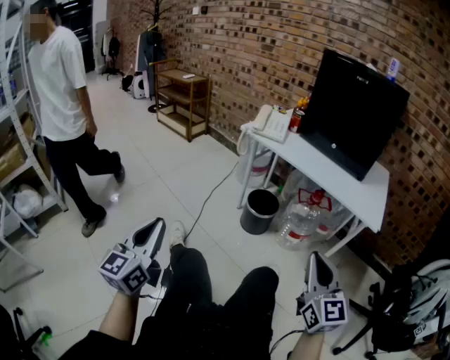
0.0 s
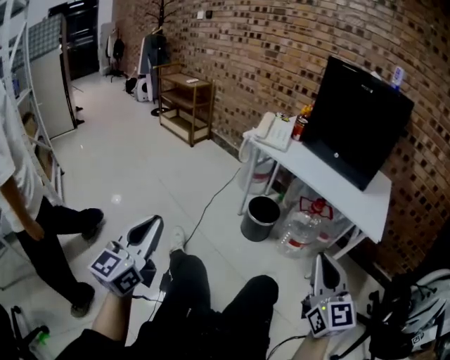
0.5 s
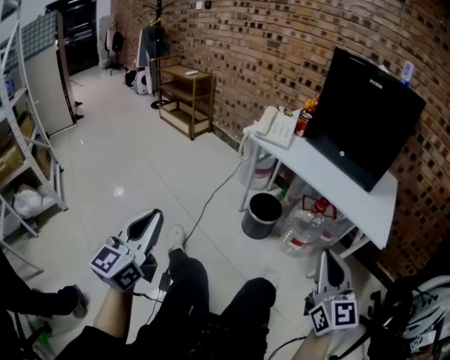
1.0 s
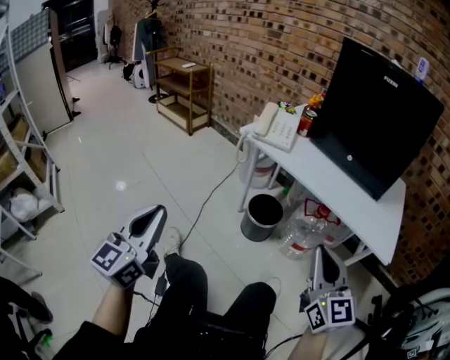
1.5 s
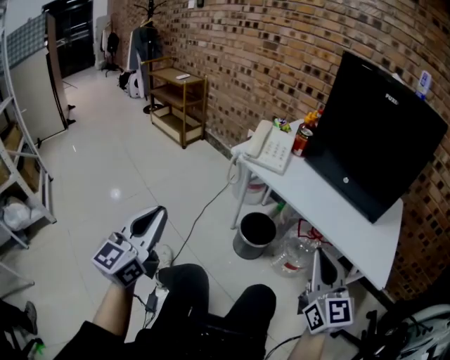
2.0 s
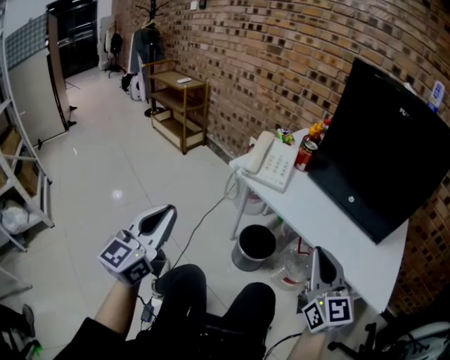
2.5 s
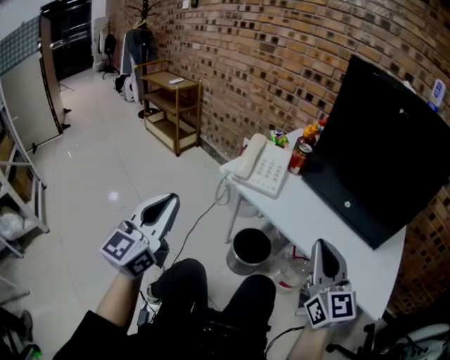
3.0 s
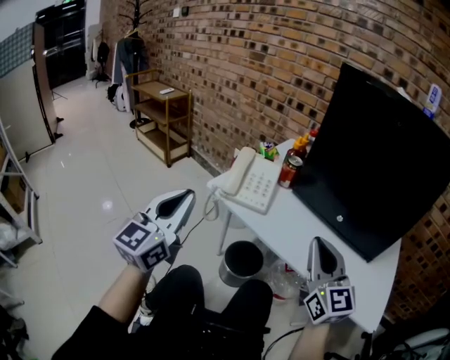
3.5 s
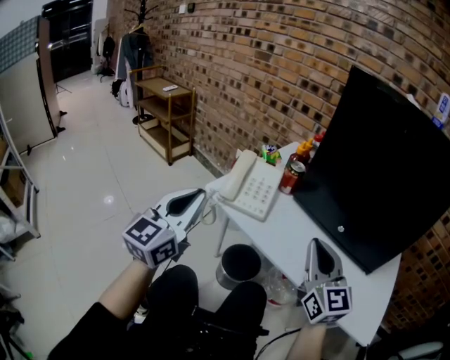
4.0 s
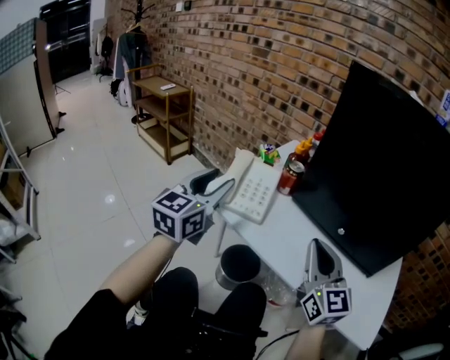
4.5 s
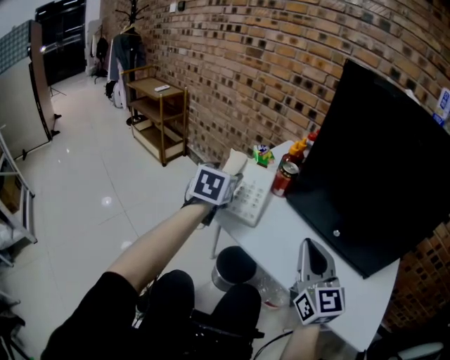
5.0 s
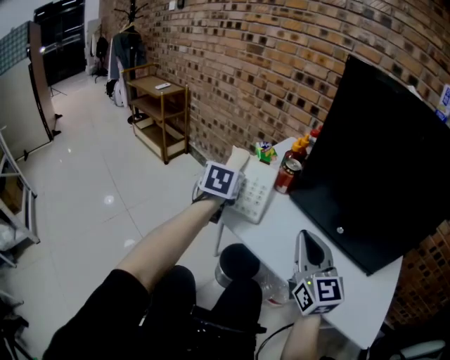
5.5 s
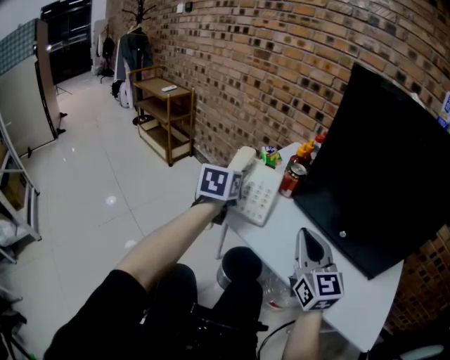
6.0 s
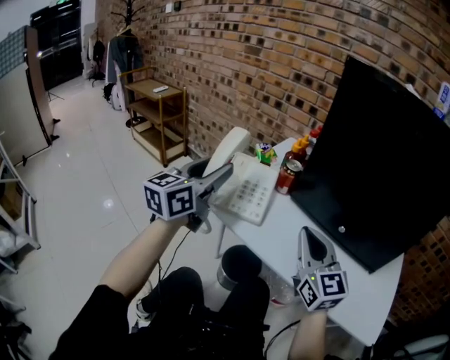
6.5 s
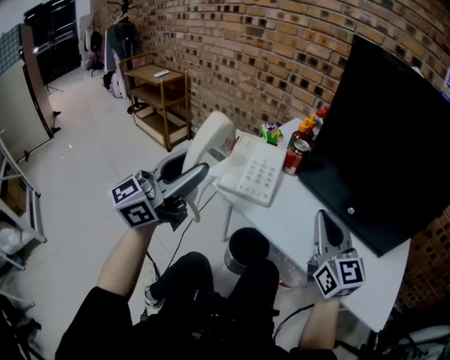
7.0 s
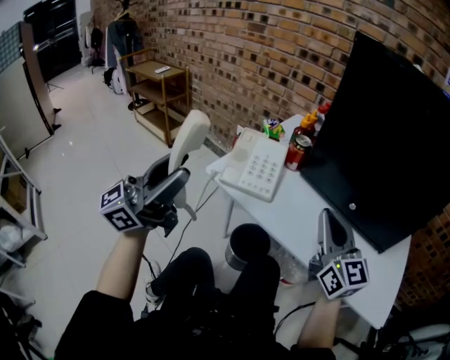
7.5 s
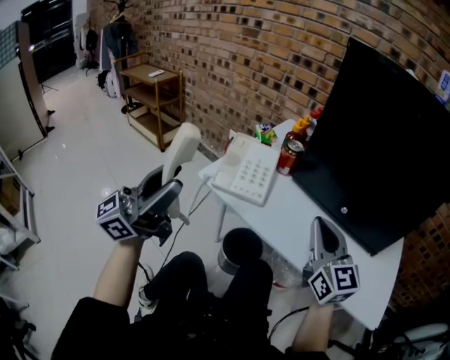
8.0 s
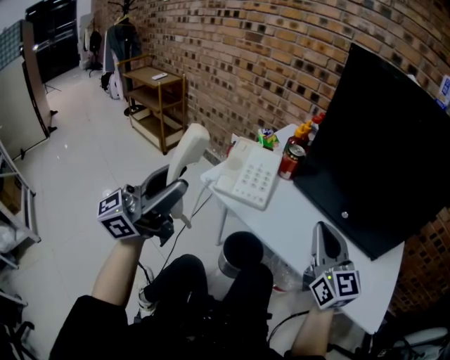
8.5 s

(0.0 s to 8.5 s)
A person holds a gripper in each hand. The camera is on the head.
0.0 s - 2.0 s: Both grippers move forward, roughly 25 cm.
2.0 s - 4.0 s: The left gripper shifts approximately 30 cm forward and to the right. The right gripper goes about 20 cm forward.
4.0 s - 6.5 s: The left gripper goes some 10 cm forward, and opens up, while the right gripper is displaced forward by roughly 5 cm.
6.5 s - 8.5 s: The left gripper travels backward by about 15 cm, and changes its angle by about 30 degrees.

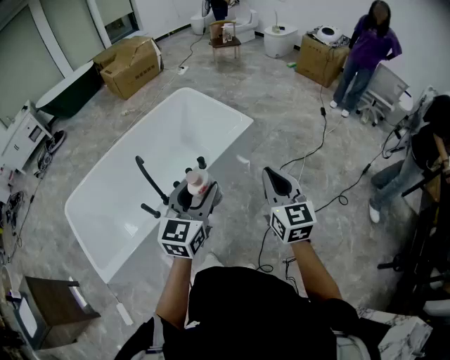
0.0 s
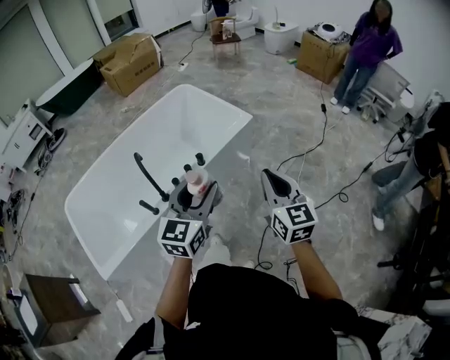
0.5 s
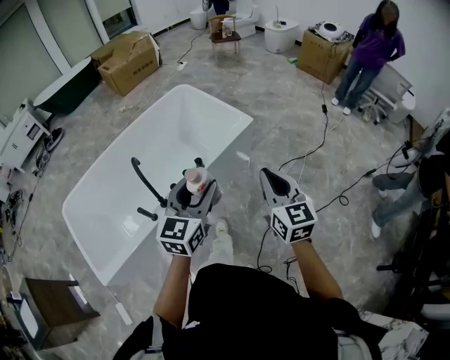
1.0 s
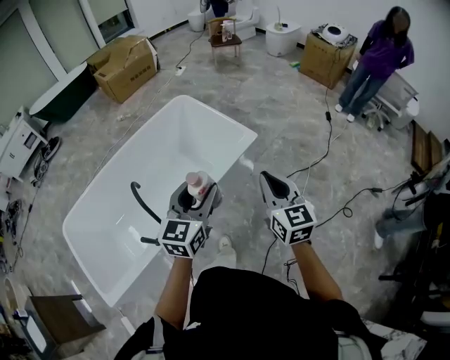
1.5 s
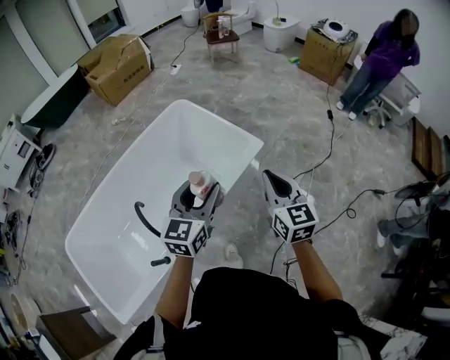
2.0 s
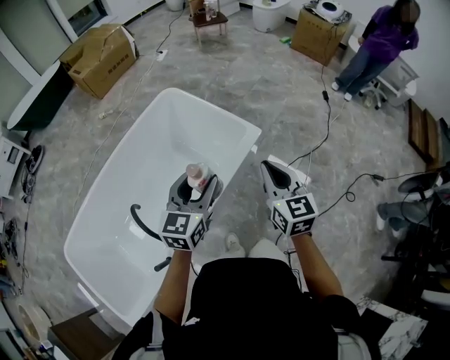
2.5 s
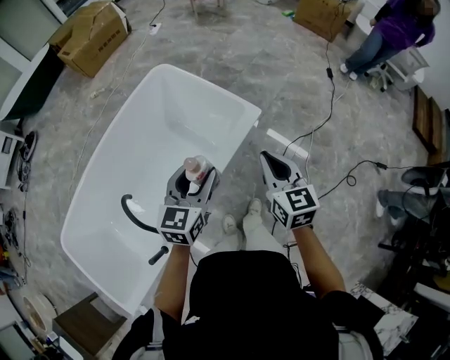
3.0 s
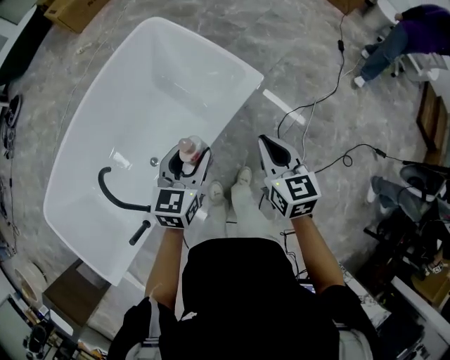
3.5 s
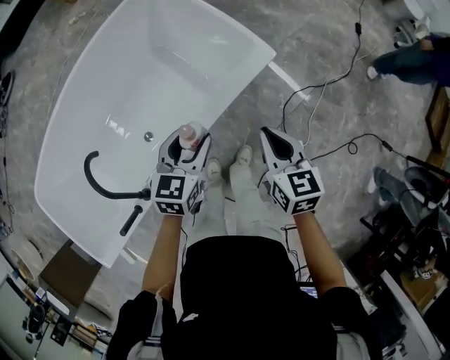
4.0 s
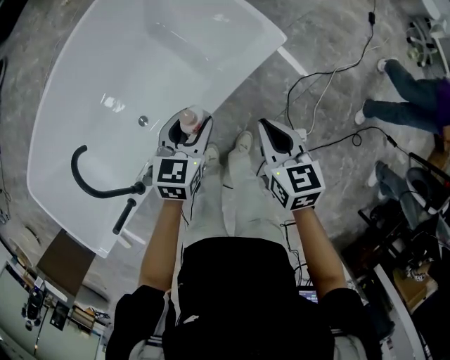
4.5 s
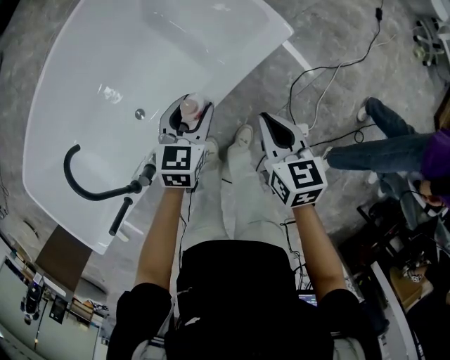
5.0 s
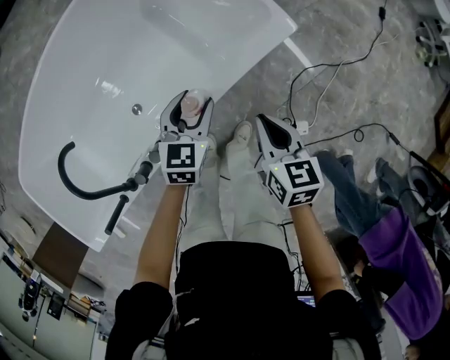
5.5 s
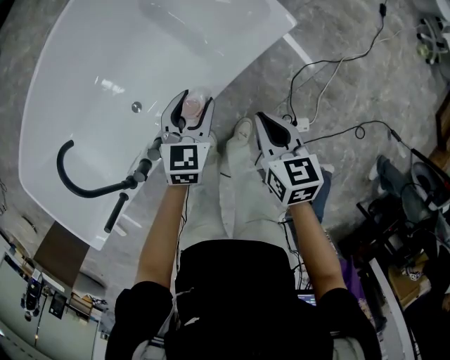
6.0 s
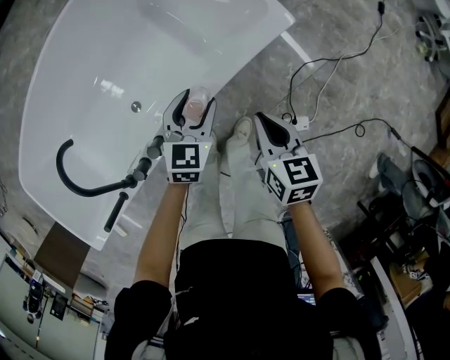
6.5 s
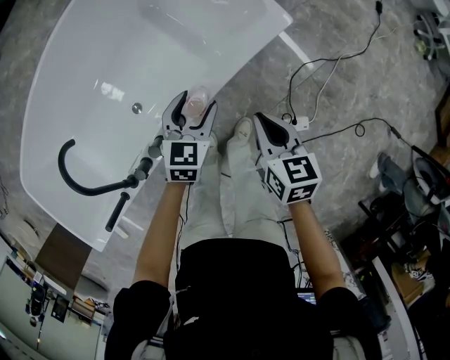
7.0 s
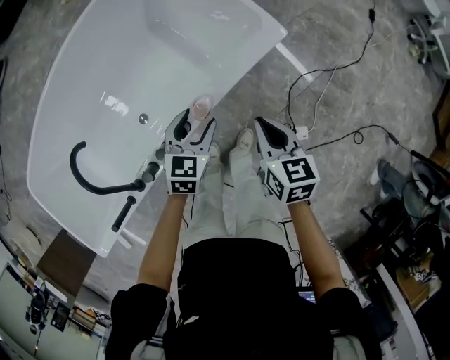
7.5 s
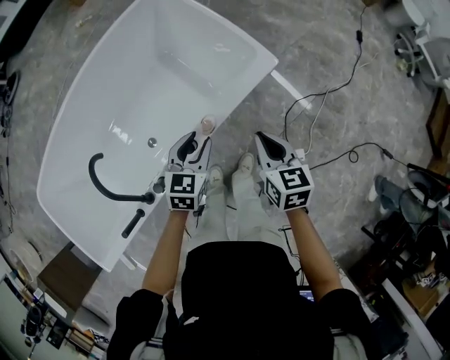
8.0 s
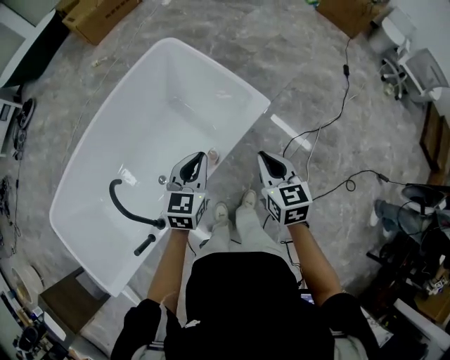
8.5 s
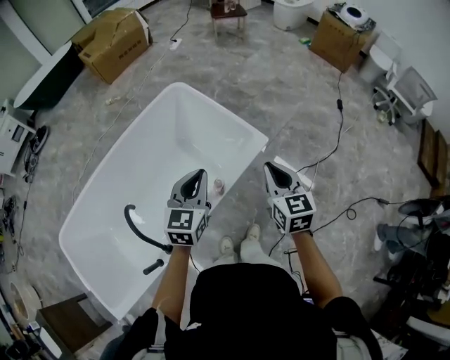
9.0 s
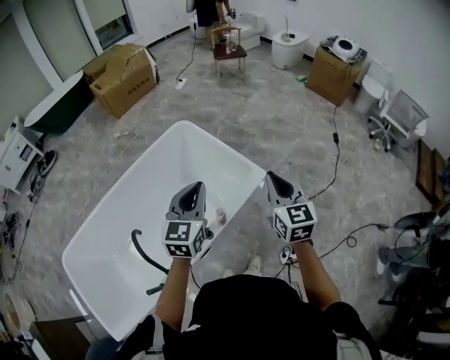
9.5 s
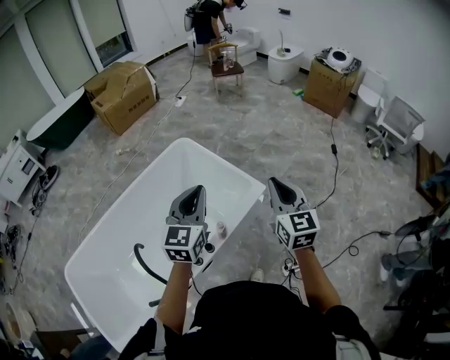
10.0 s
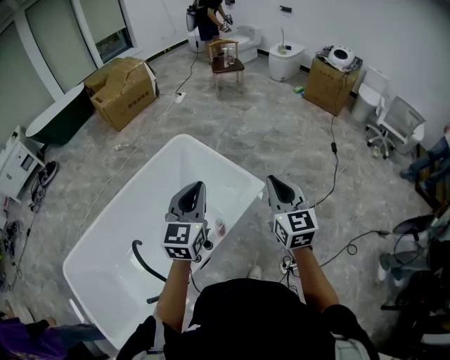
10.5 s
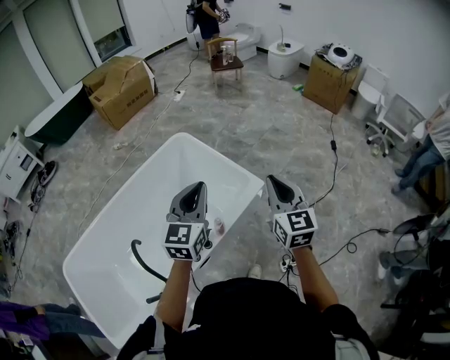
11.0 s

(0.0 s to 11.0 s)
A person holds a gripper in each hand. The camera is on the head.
0.0 s - 2.0 s: The grippers both shift forward by some 30 cm.
2.0 s - 3.5 s: Both grippers travel together downward and forward, approximately 20 cm.
3.5 s - 5.5 s: Both grippers travel together downward, roughly 25 cm.
5.5 s - 7.5 s: The left gripper shifts about 5 cm backward.
7.5 s - 9.0 s: Both grippers travel together upward, some 30 cm. The left gripper rotates some 20 degrees, and closes. Meanwhile the right gripper rotates approximately 20 degrees.
9.0 s - 11.0 s: Both grippers travel together upward, about 15 cm.

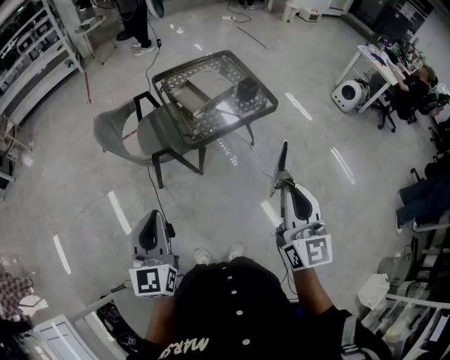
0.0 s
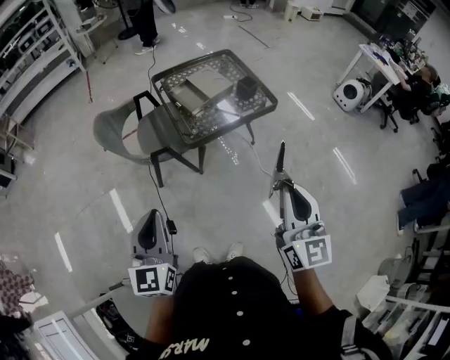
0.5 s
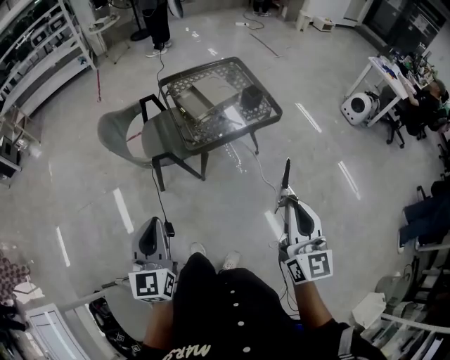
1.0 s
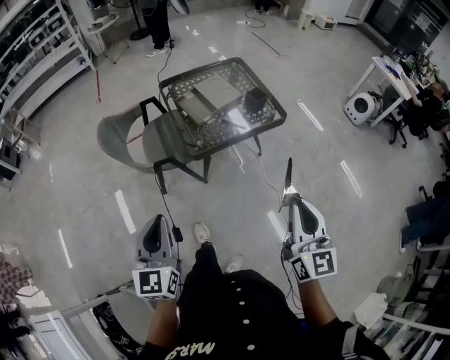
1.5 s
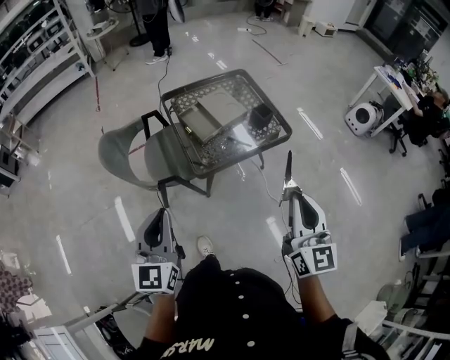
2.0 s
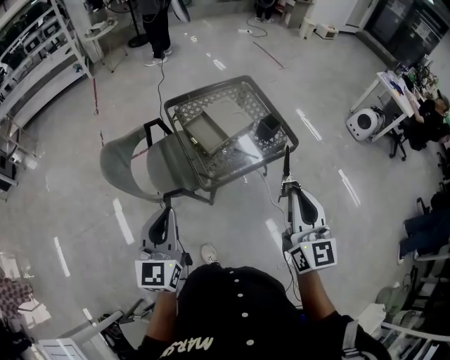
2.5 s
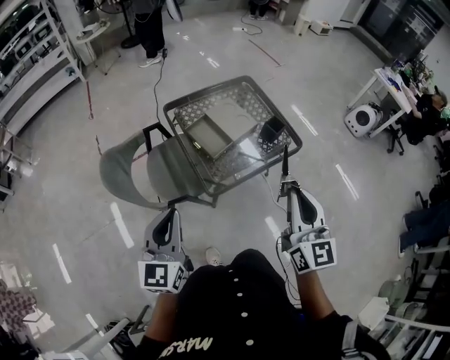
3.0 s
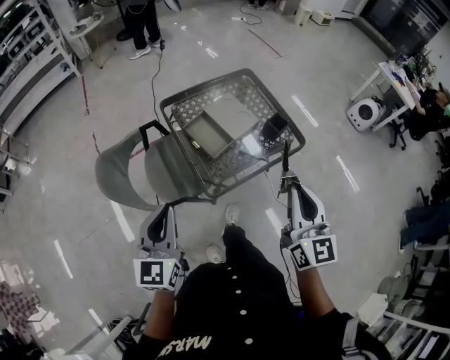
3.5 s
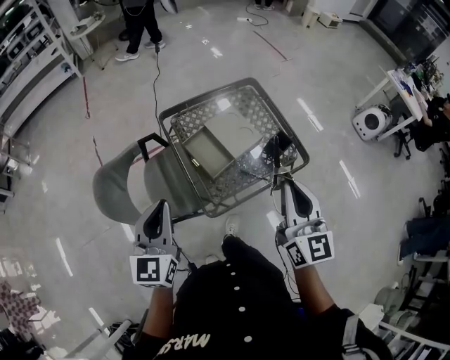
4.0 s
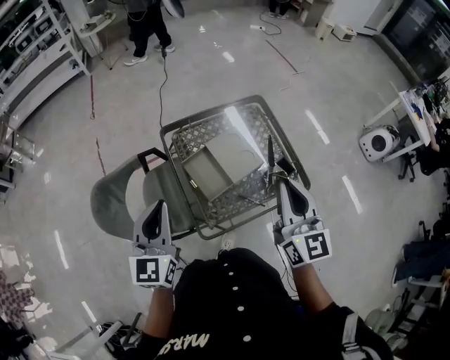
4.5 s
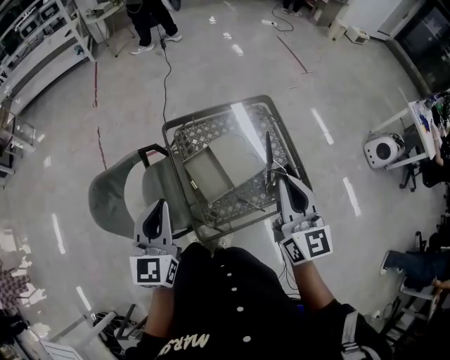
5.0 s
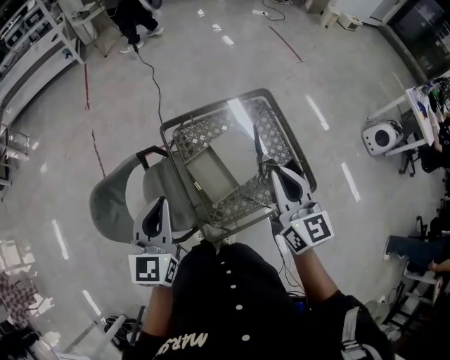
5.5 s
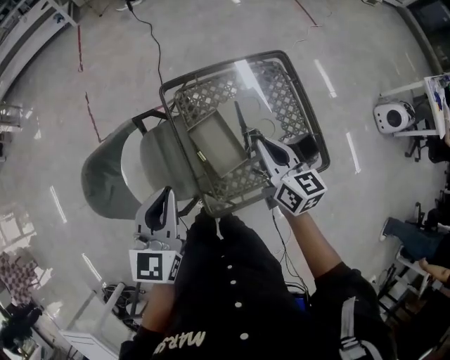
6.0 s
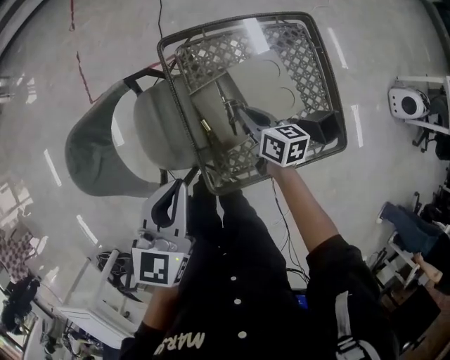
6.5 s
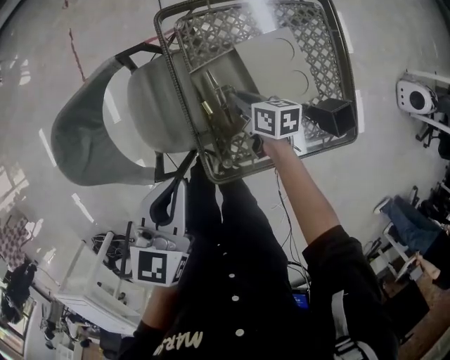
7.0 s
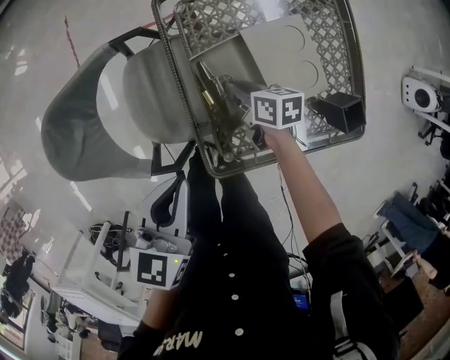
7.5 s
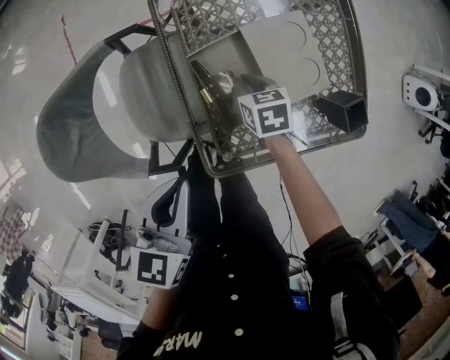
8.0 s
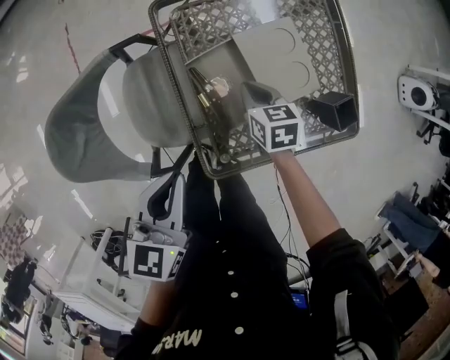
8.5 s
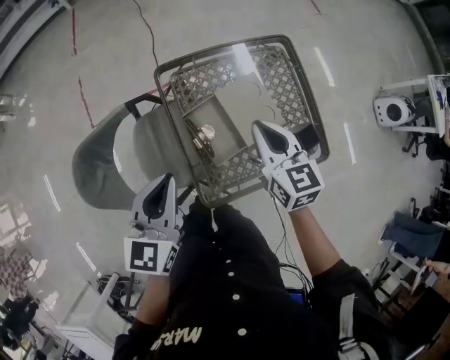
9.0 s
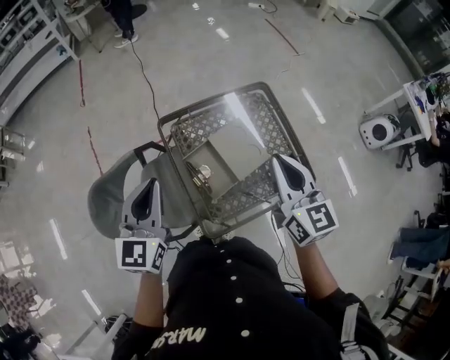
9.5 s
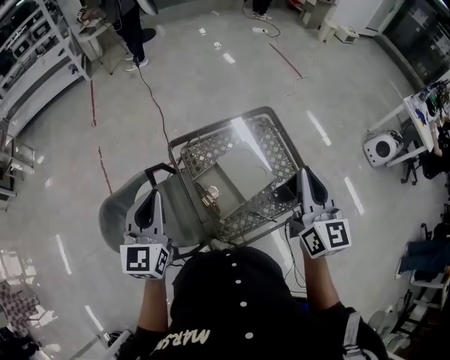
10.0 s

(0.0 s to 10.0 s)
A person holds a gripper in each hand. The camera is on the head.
0.0 s - 2.0 s: Both grippers travel together forward, roughly 15 cm.
2.0 s - 4.0 s: The grippers both shift forward by some 30 cm.
4.0 s - 6.0 s: The left gripper travels forward by roughly 15 cm; the right gripper is displaced forward and downward by some 30 cm, and turns by roughly 30 degrees.
6.0 s - 8.0 s: The left gripper moves downward, some 15 cm, and rotates roughly 20 degrees; the right gripper heads downward, covering about 30 cm, and angles its fingers downward, by approximately 40 degrees.
8.0 s - 10.0 s: The left gripper goes about 25 cm upward, and changes its angle by about 30 degrees. Meanwhile the right gripper shifts roughly 50 cm upward, and tips its fingers upward by some 60 degrees.
